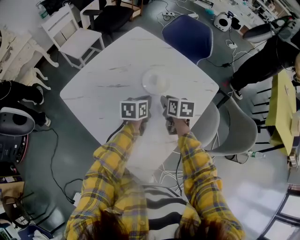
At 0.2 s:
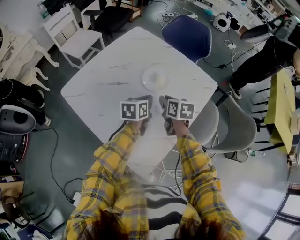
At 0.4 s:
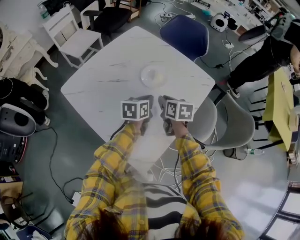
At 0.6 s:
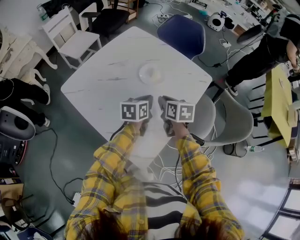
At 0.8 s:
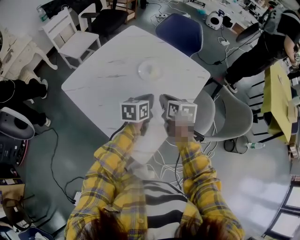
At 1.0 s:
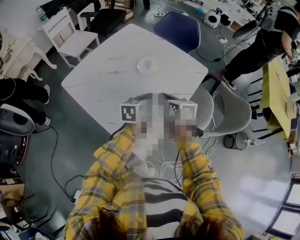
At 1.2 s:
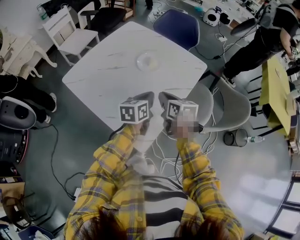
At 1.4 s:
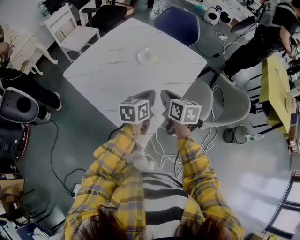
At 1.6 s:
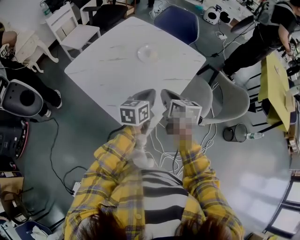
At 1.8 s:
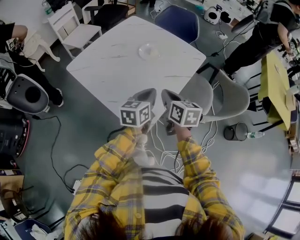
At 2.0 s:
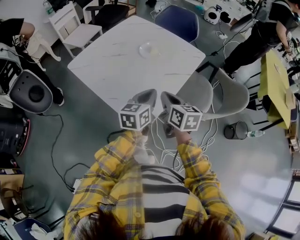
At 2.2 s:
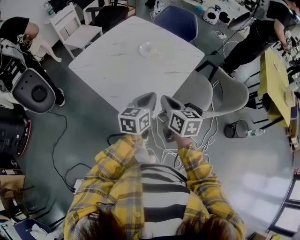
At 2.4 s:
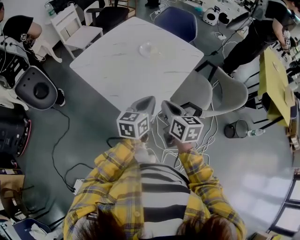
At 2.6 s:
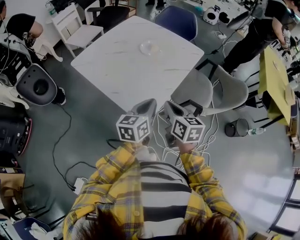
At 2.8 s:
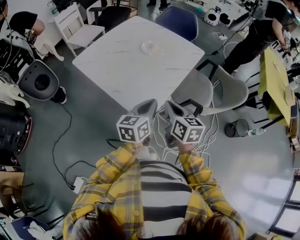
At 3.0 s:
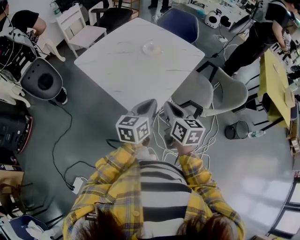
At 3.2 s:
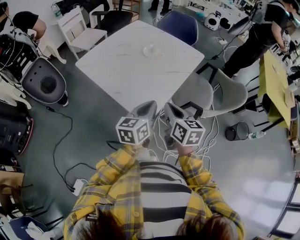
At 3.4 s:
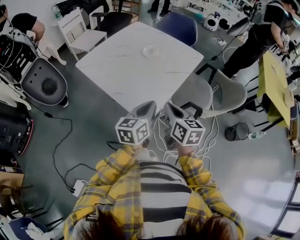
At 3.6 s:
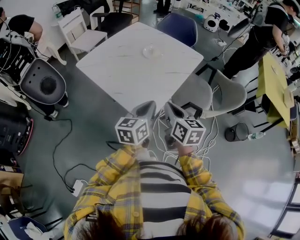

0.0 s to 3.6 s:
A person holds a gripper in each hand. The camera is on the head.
0.0 to 1.8 s: Both grippers move backward and upward, roughly 25 cm. The right gripper closes.
1.8 to 3.6 s: The two grippers go approximately 15 cm backward.

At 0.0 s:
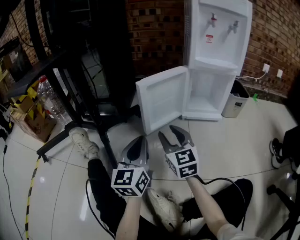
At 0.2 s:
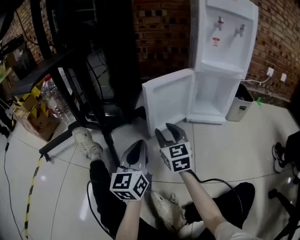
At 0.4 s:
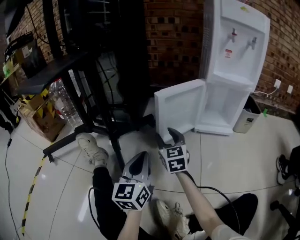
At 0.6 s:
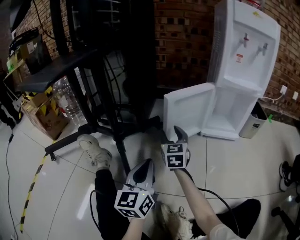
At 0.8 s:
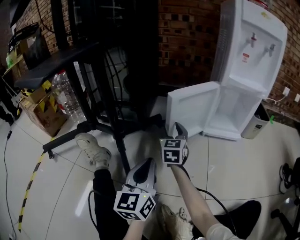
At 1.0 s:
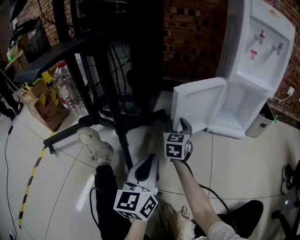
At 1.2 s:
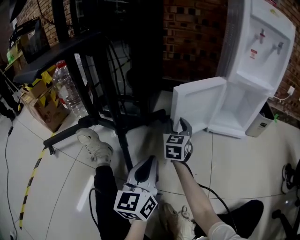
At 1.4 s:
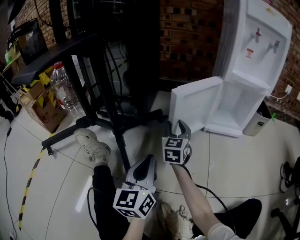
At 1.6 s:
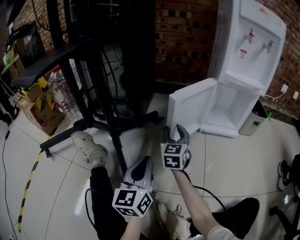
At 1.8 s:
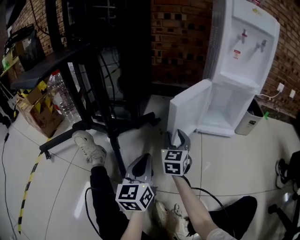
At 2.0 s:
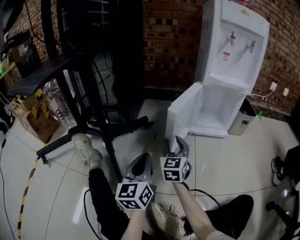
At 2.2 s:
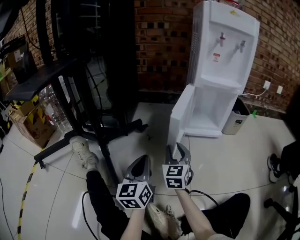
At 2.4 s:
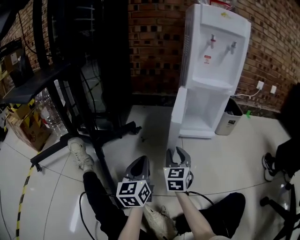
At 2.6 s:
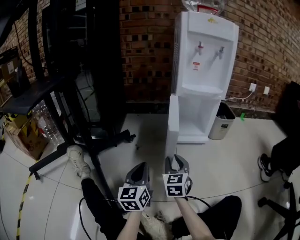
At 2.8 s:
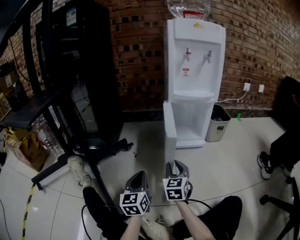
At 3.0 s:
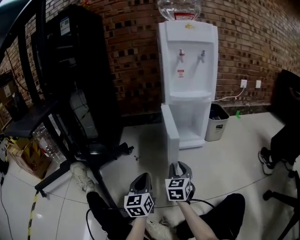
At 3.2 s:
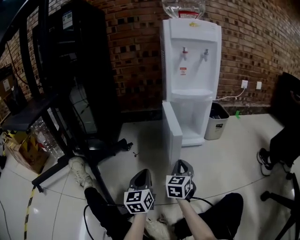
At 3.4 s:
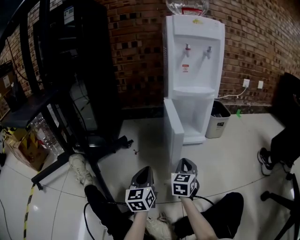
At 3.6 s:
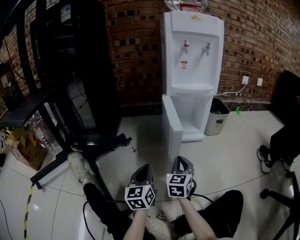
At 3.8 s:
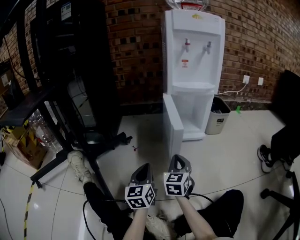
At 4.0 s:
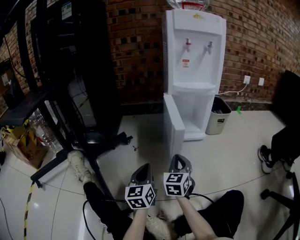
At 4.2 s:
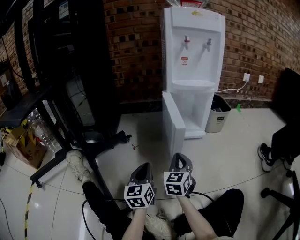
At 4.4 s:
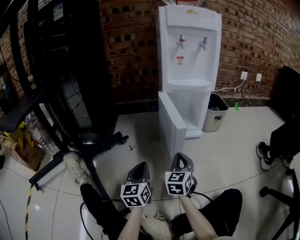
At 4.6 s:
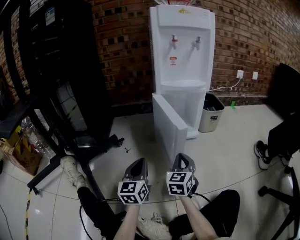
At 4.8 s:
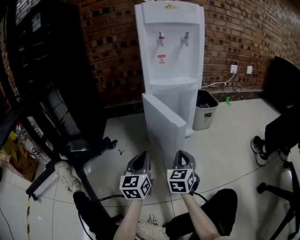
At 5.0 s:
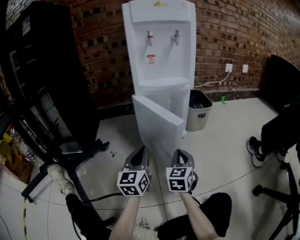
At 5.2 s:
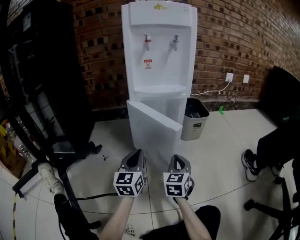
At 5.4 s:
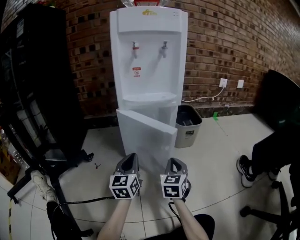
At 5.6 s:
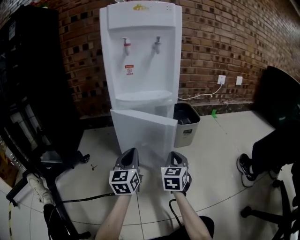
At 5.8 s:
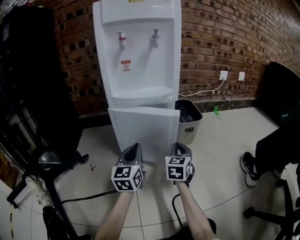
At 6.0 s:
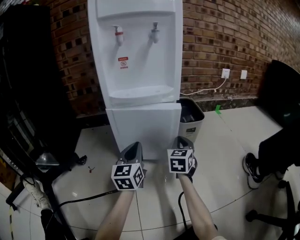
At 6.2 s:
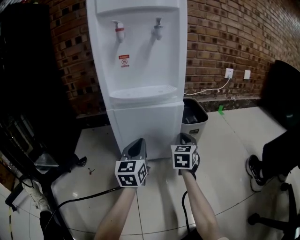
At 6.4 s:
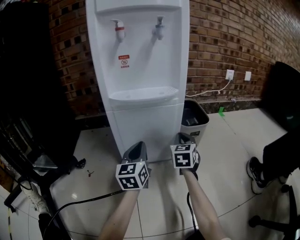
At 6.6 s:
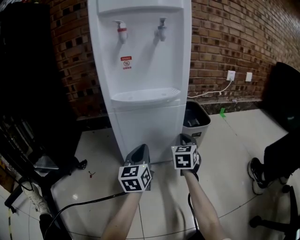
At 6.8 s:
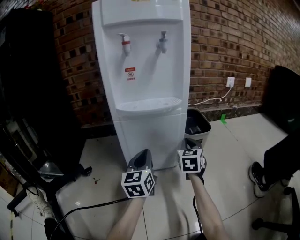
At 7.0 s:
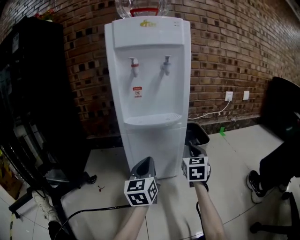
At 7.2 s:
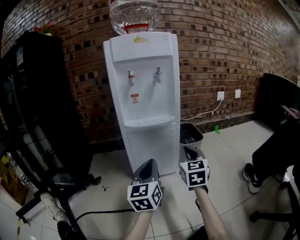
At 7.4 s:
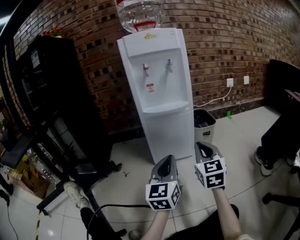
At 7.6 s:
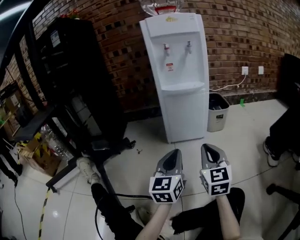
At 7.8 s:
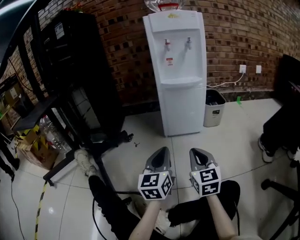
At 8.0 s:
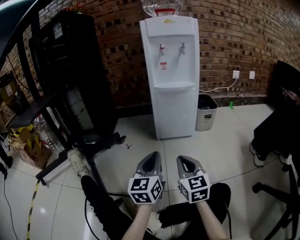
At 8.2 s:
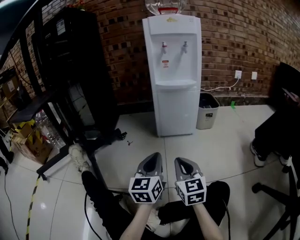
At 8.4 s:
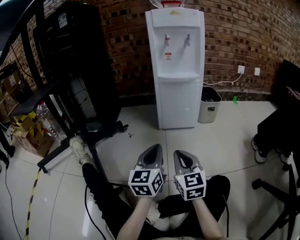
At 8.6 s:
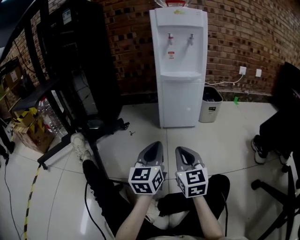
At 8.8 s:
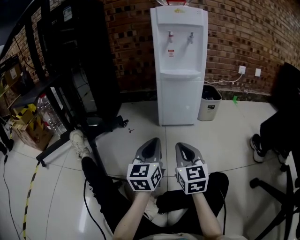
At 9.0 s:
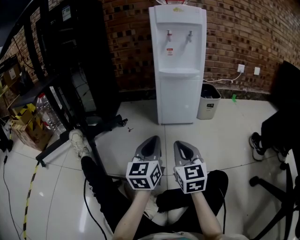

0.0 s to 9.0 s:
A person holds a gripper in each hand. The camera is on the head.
0.0 to 1.6 s: The right gripper is displaced forward and to the left by some 15 cm. Meanwhile the left gripper is displaced to the left by about 5 cm.
1.6 to 3.0 s: The left gripper is displaced to the right by some 10 cm, while the right gripper heads to the right and backward, covering about 20 cm.
3.0 to 4.4 s: The right gripper closes up.
4.4 to 6.0 s: The grippers both shift forward and to the right by approximately 30 cm.
6.0 to 7.6 s: The grippers both shift backward by roughly 25 cm. The right gripper turns by approximately 20 degrees.
7.6 to 9.0 s: The left gripper moves backward and to the left, approximately 10 cm; the right gripper is displaced to the left and backward by approximately 10 cm.

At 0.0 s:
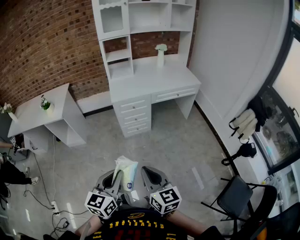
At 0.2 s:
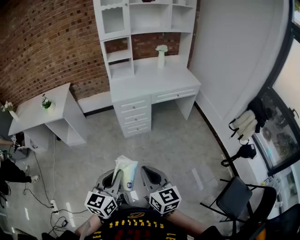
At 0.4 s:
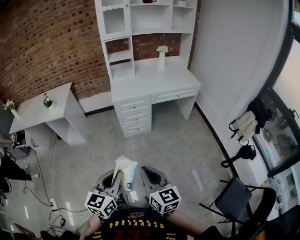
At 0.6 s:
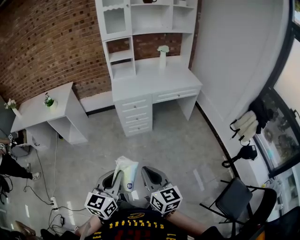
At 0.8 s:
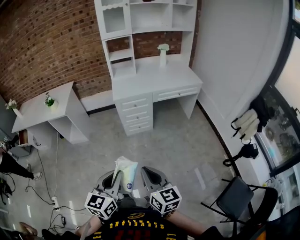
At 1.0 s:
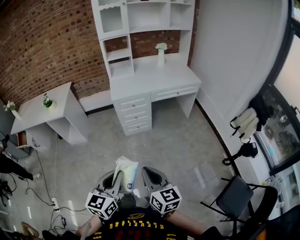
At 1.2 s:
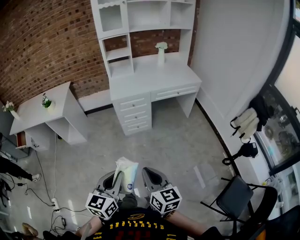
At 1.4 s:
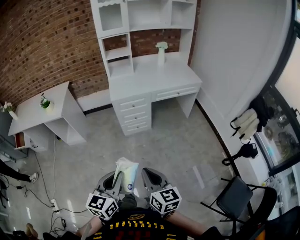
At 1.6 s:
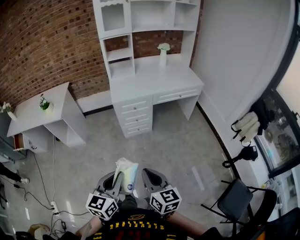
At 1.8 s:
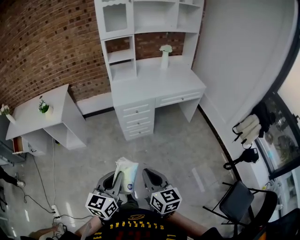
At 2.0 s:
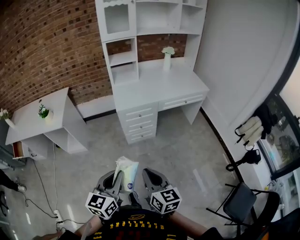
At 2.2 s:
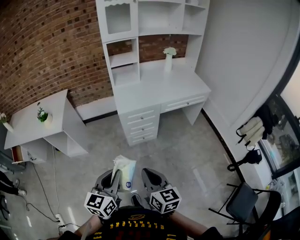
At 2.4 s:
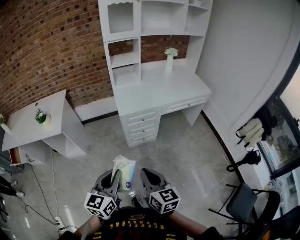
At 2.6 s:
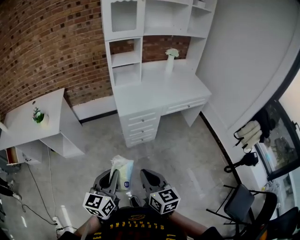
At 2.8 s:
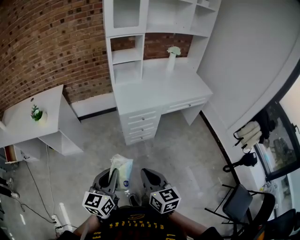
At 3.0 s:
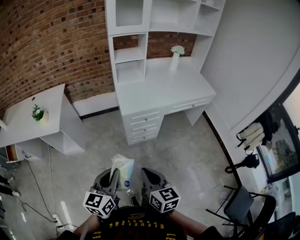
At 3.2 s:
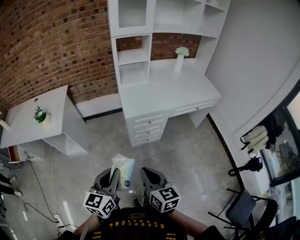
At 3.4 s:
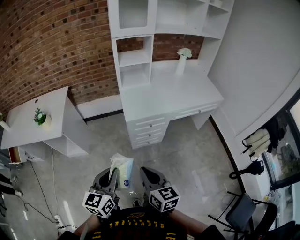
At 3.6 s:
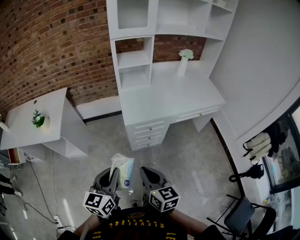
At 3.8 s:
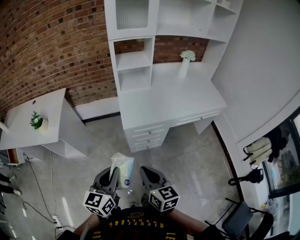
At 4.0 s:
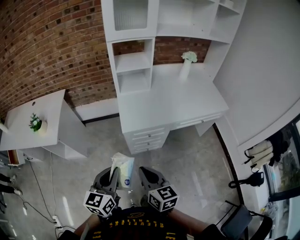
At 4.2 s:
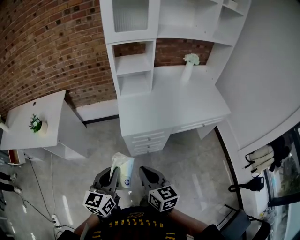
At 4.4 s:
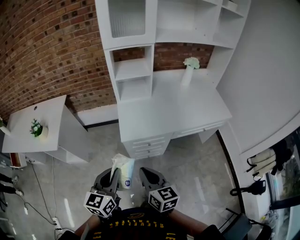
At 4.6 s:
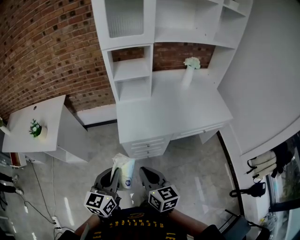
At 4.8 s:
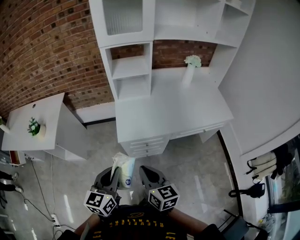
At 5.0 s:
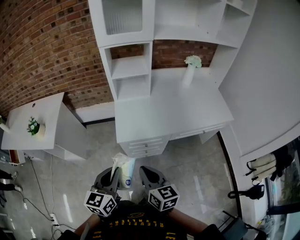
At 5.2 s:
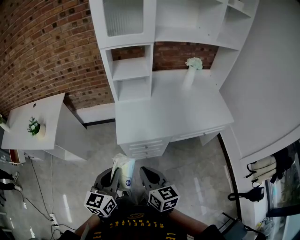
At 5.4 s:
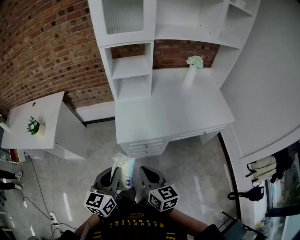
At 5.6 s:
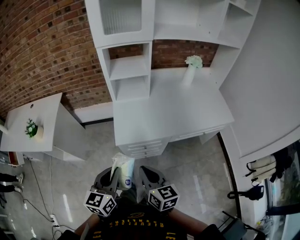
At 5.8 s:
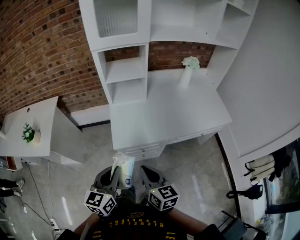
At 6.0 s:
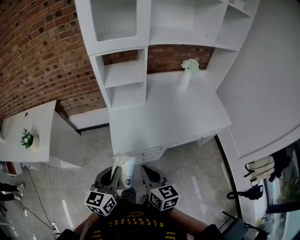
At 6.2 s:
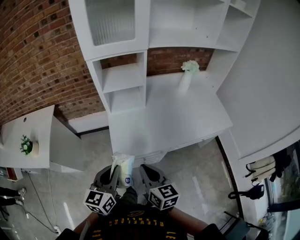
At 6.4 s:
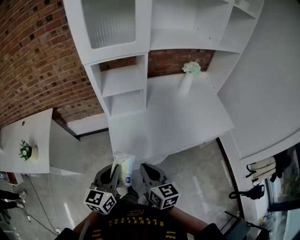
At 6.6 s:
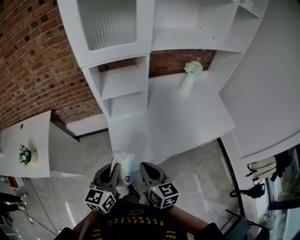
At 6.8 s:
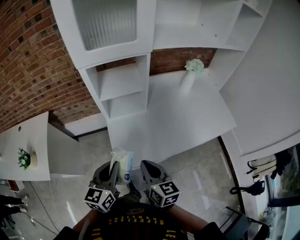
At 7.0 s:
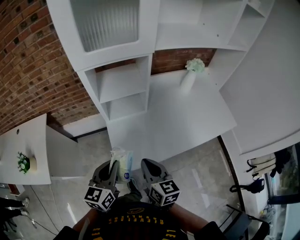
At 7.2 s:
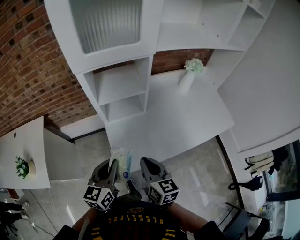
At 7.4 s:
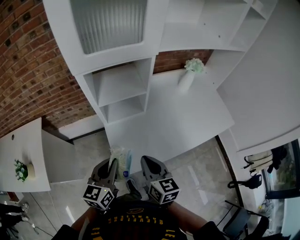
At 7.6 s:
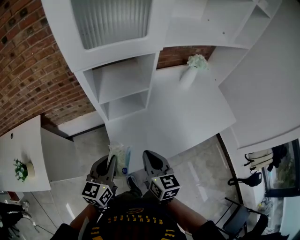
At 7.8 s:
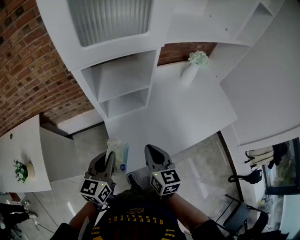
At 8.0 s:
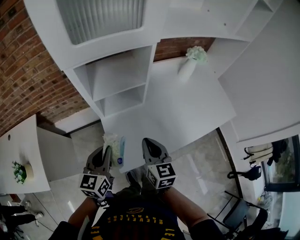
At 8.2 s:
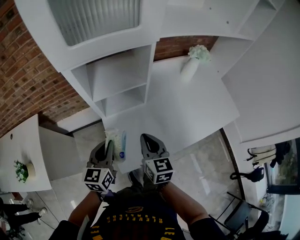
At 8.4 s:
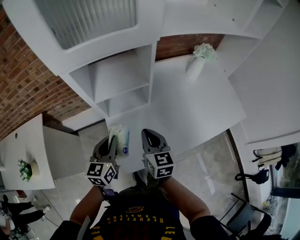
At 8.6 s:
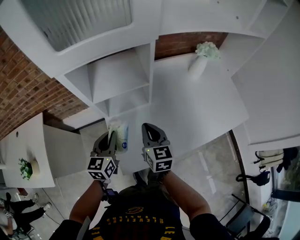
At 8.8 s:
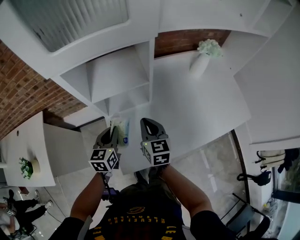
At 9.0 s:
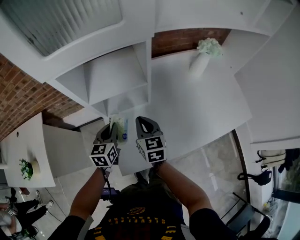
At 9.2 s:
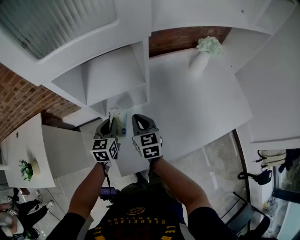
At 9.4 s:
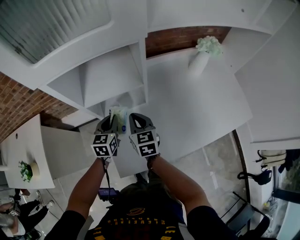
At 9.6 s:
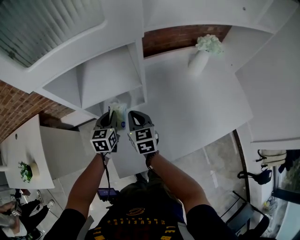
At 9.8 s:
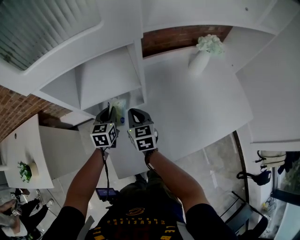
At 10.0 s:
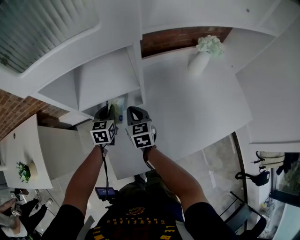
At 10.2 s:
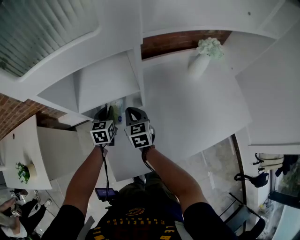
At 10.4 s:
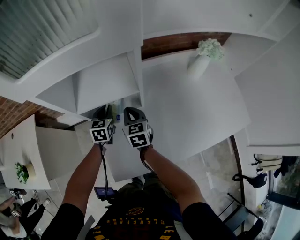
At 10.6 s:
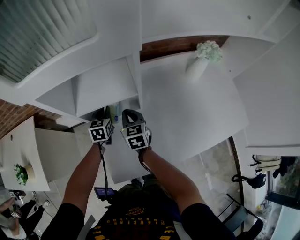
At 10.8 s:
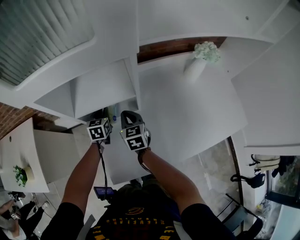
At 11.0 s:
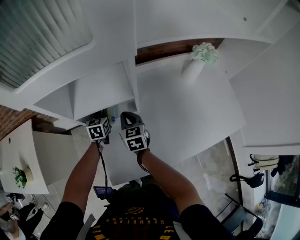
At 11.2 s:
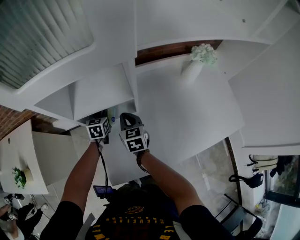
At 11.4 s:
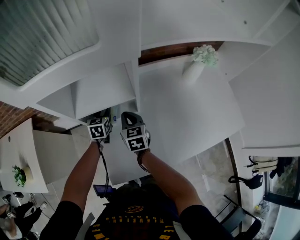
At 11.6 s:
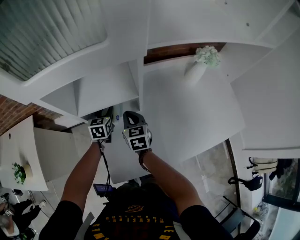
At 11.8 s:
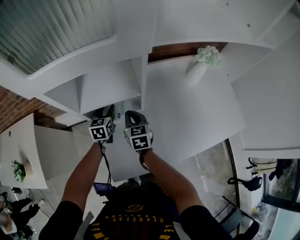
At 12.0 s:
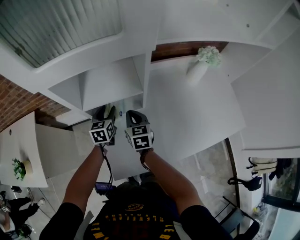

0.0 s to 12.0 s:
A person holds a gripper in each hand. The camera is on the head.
0.0 to 1.6 s: The grippers stay close to where they were, moving slightly.
1.6 to 3.0 s: The grippers both shift forward and to the left by some 25 cm.
3.0 to 4.4 s: The two grippers go roughly 25 cm forward.
4.4 to 6.0 s: The two grippers go about 15 cm forward and to the right.
6.0 to 7.6 s: Both grippers travel together forward, roughly 20 cm.
7.6 to 9.0 s: Both grippers move forward and downward, roughly 20 cm.
9.0 to 10.4 s: Both grippers move forward and downward, approximately 15 cm.
10.4 to 12.0 s: The left gripper opens its fingers.
